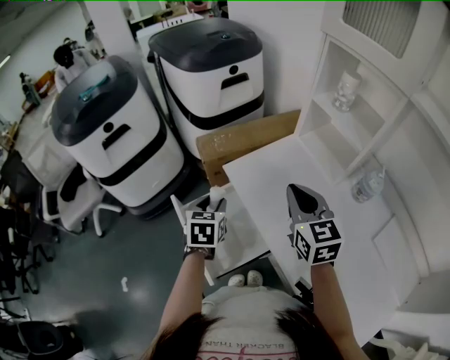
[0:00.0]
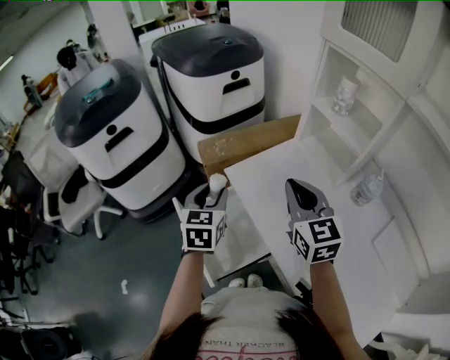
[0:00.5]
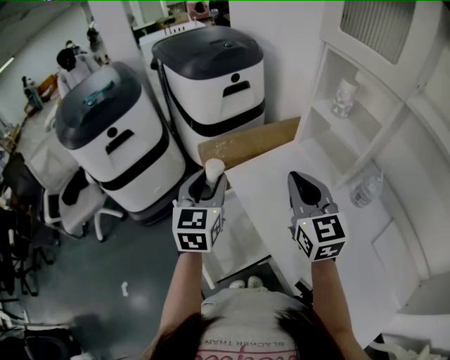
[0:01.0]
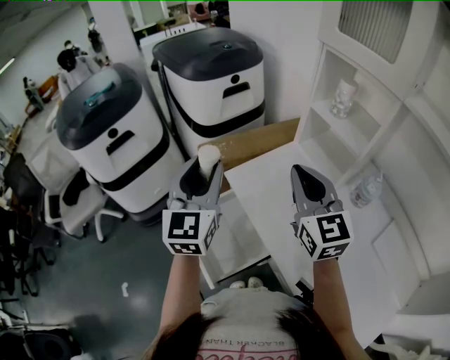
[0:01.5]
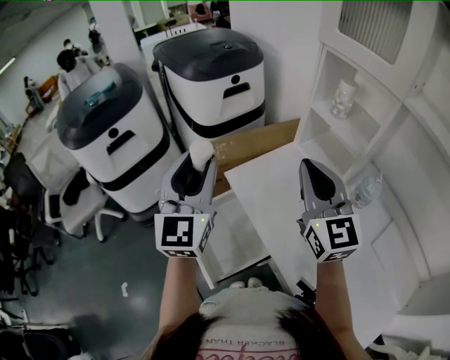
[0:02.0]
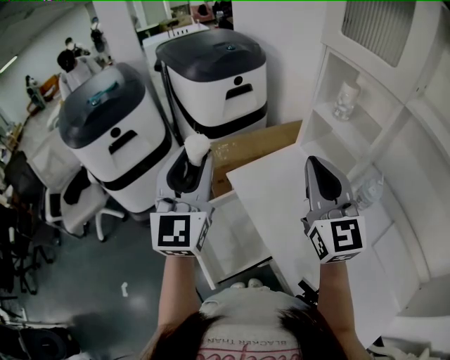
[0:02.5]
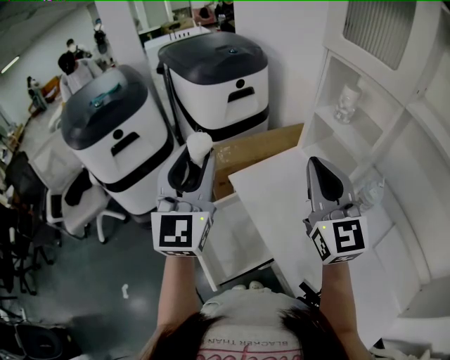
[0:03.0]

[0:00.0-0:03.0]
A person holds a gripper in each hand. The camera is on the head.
0:00.0 to 0:01.5: The left gripper heads upward, covering approximately 20 cm, and tips its fingers upward by some 40 degrees. The right gripper is displaced upward by roughly 10 cm.
0:01.5 to 0:03.0: The two grippers go roughly 5 cm upward.

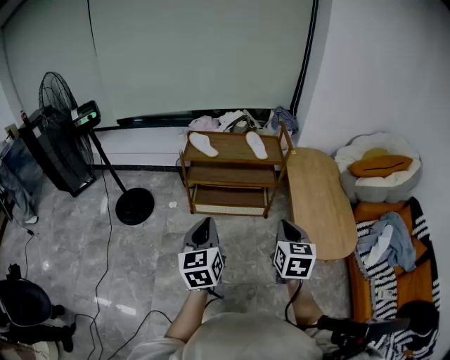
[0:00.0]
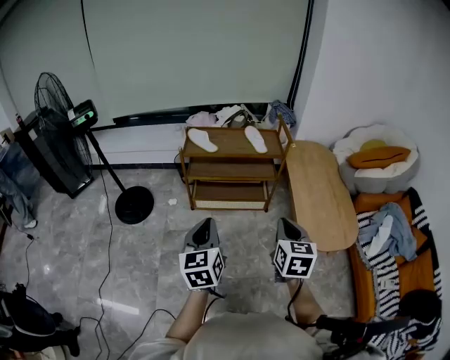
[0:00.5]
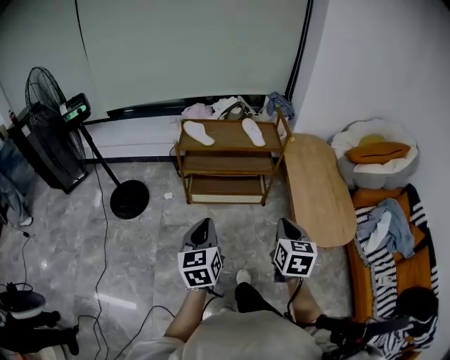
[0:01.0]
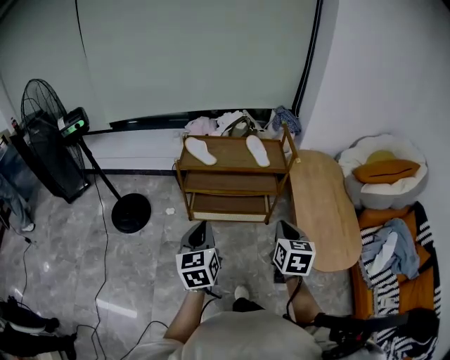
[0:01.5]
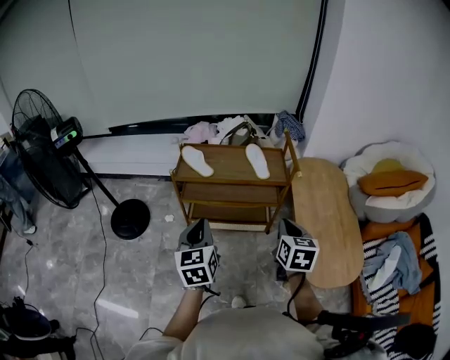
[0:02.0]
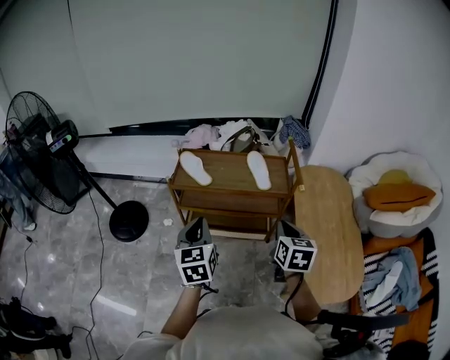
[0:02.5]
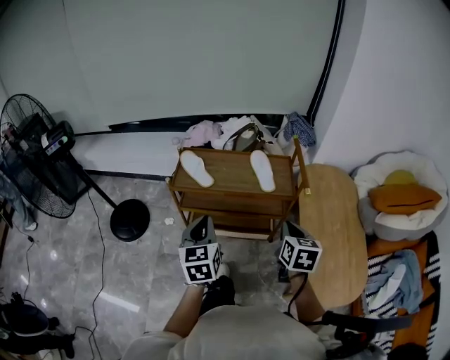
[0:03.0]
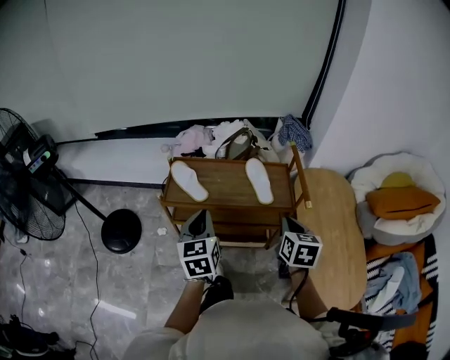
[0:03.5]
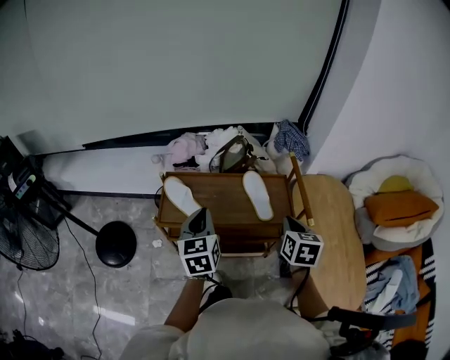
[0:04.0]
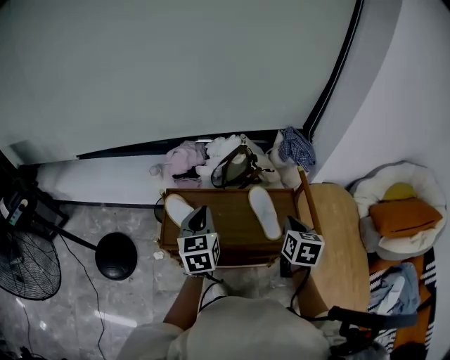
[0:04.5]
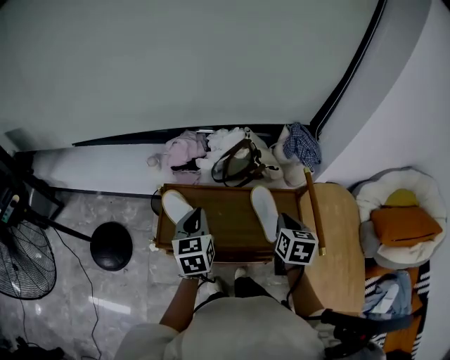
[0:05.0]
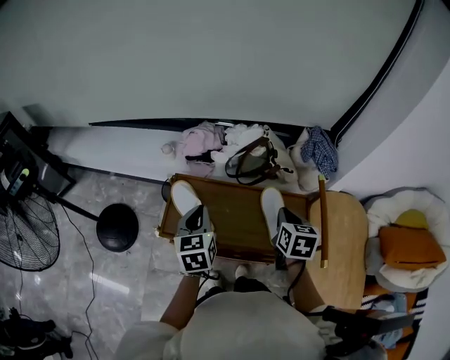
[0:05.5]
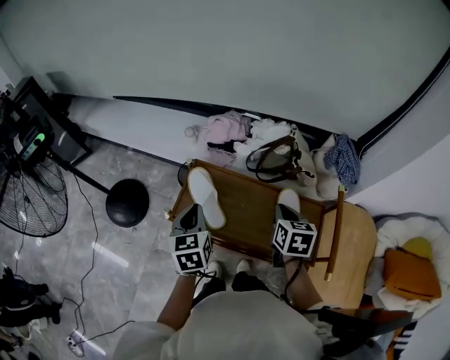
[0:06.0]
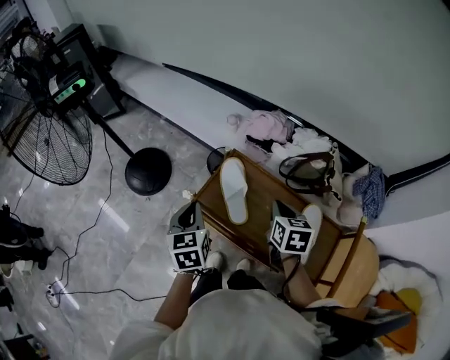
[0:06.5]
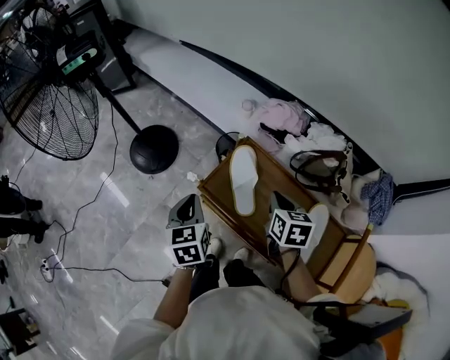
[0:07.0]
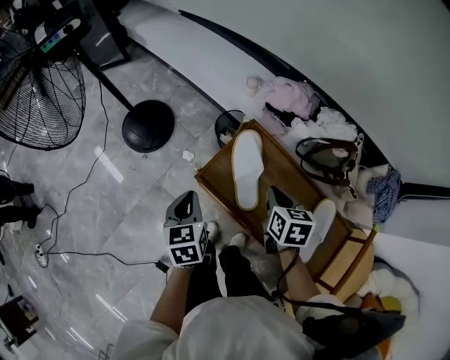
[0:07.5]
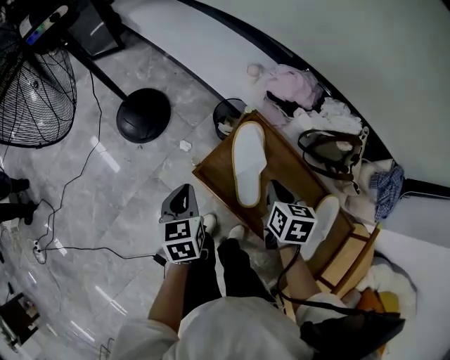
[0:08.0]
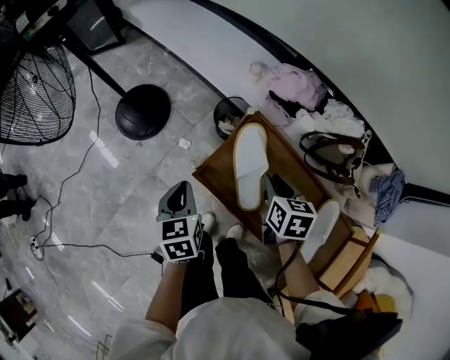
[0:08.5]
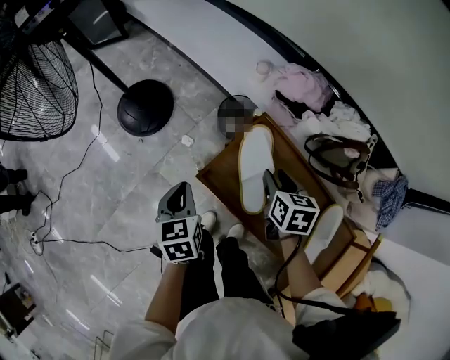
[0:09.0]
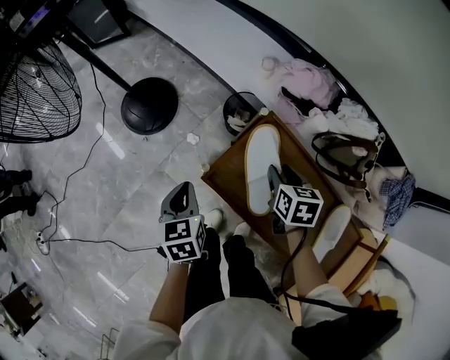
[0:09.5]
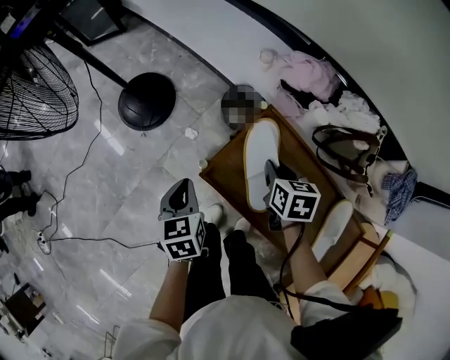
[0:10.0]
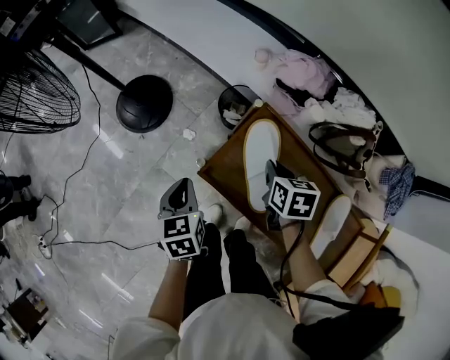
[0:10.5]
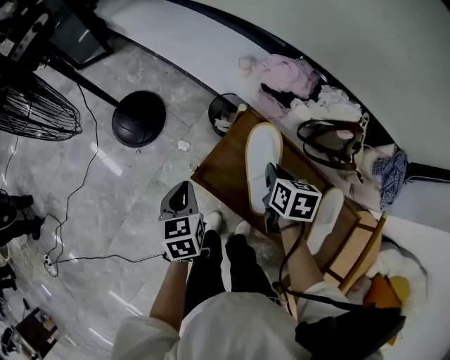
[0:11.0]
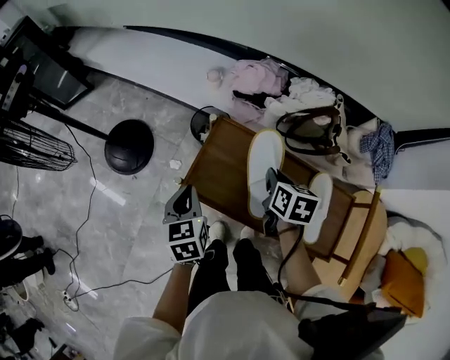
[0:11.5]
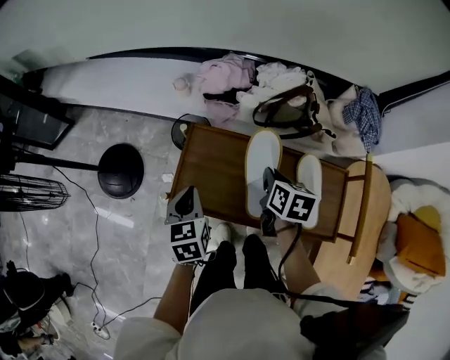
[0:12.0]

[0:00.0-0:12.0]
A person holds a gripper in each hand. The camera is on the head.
0:00.0 to 0:02.0: Both grippers travel together forward, approximately 20 cm.
0:02.0 to 0:04.0: The two grippers go some 30 cm forward.
0:04.0 to 0:06.0: The right gripper travels forward and to the left by roughly 20 cm, and rotates roughly 20 degrees; the left gripper heads to the left, forward and downward, covering approximately 15 cm, and turns by approximately 20 degrees.
0:06.0 to 0:08.0: The left gripper shifts by roughly 20 cm, and rotates roughly 30 degrees, while the right gripper moves some 20 cm, and changes its angle by some 30 degrees.
0:08.0 to 0:10.0: The right gripper shifts some 10 cm forward and downward.
0:10.0 to 0:12.0: The left gripper ends up roughly 15 cm from where it was, and turns by about 30 degrees. The right gripper changes place by some 15 cm, and rotates some 40 degrees.

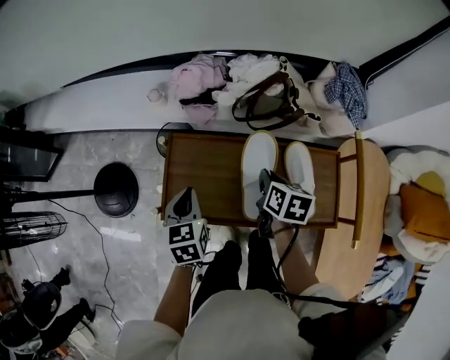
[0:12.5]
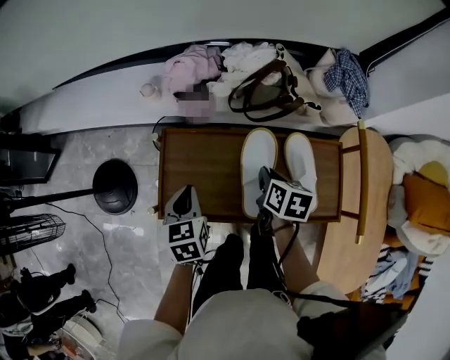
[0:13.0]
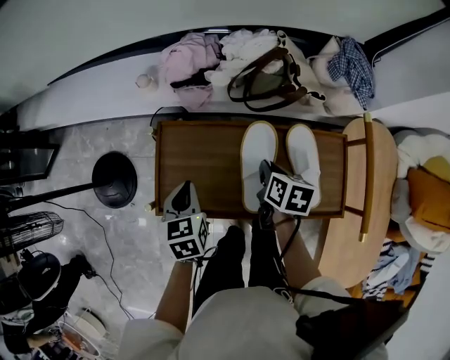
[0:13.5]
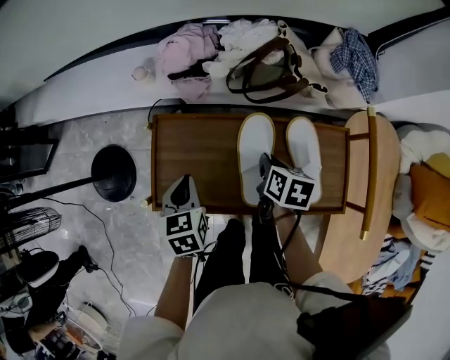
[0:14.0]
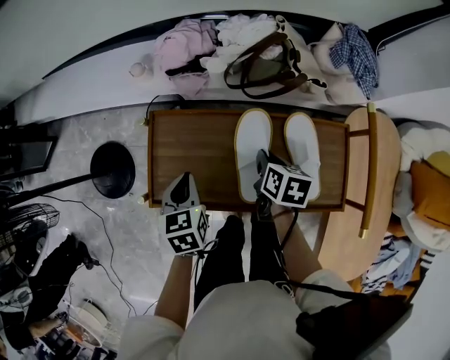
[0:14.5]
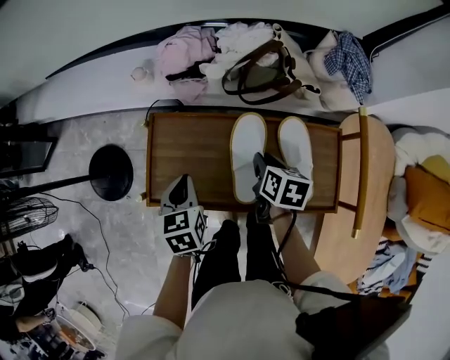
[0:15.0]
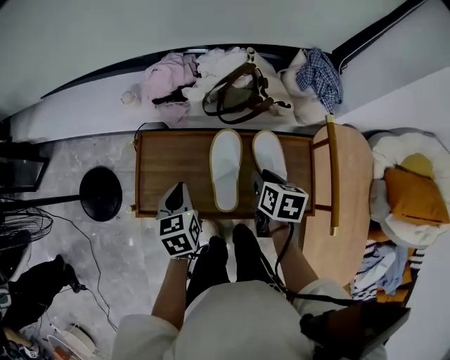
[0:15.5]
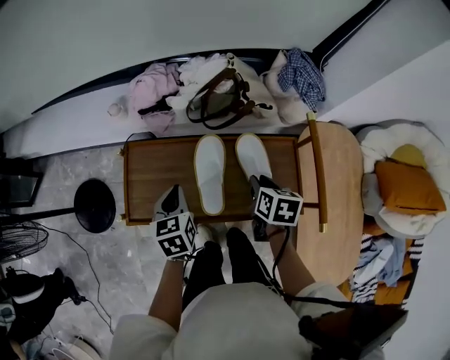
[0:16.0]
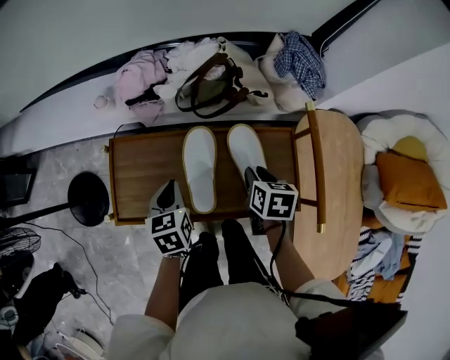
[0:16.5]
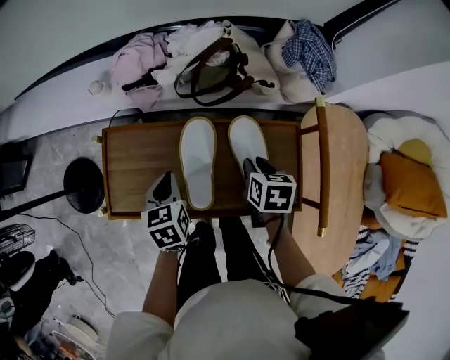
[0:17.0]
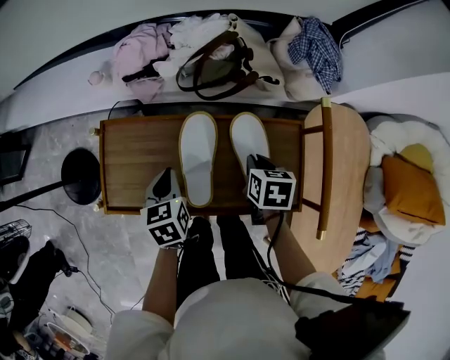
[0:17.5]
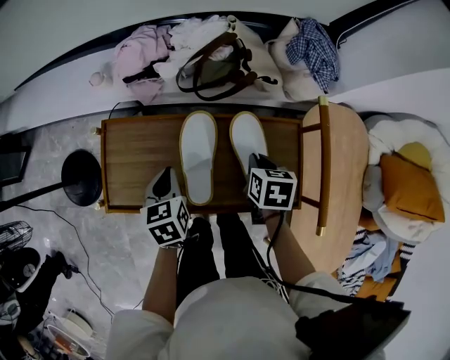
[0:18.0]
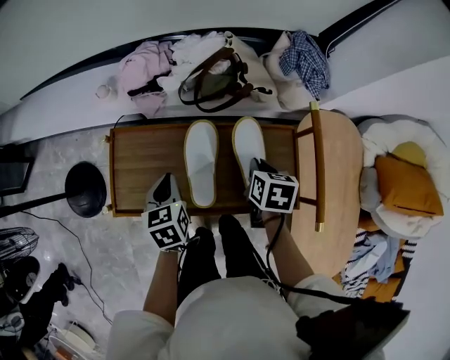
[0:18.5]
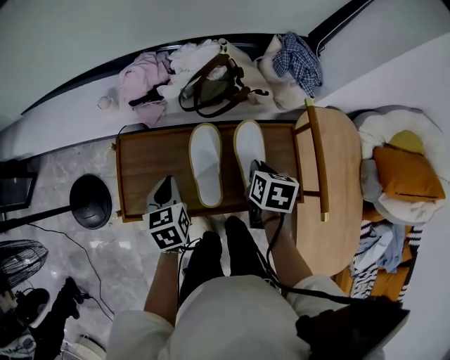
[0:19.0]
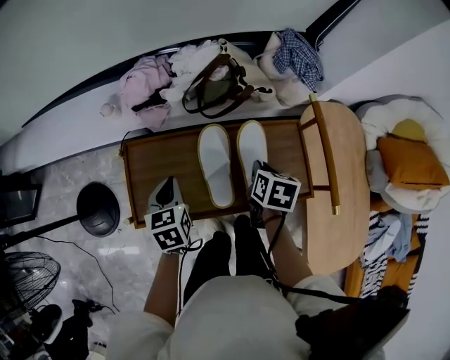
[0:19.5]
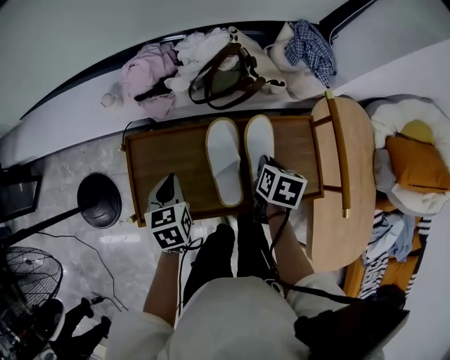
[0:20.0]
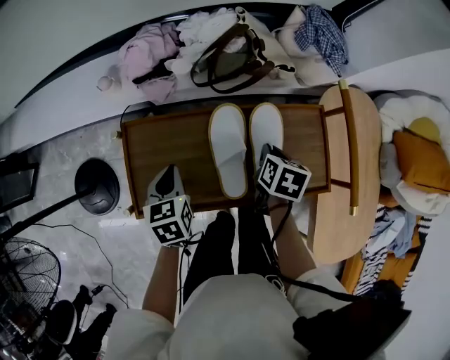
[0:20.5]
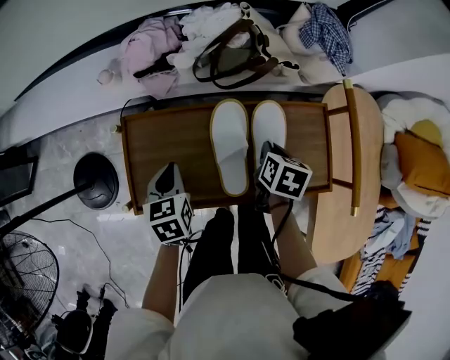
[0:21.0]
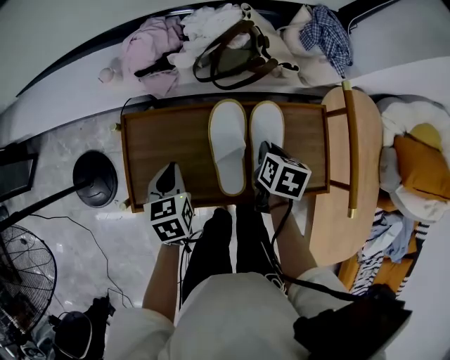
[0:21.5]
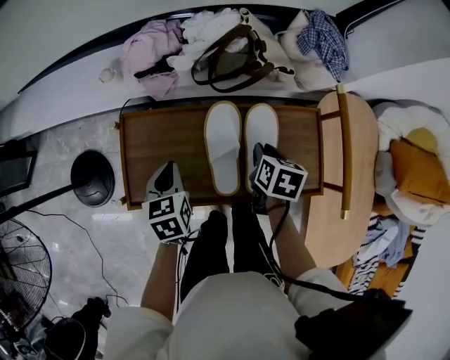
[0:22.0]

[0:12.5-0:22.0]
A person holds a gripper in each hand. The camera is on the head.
0:12.5 to 0:14.5: The right gripper shifts approximately 5 cm downward. Meanwhile the left gripper ends up some 5 cm from where it was.
0:14.5 to 0:16.5: Both grippers travel together to the right, approximately 10 cm.
0:16.5 to 0:18.0: There are only small adjustments of the grippers.
0:18.0 to 0:20.0: The left gripper travels to the left by roughly 5 cm.
0:20.0 to 0:22.0: The grippers move only a little.

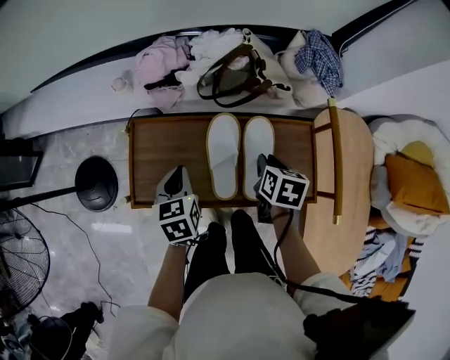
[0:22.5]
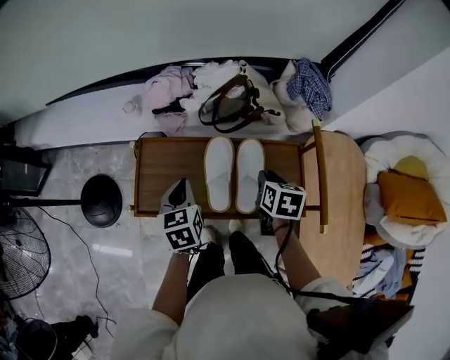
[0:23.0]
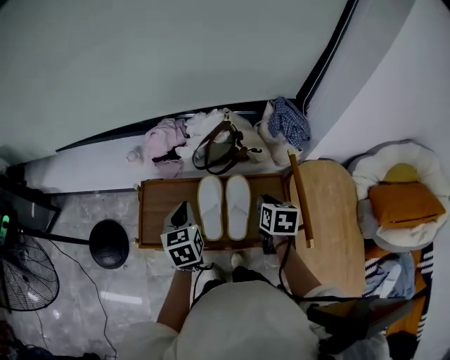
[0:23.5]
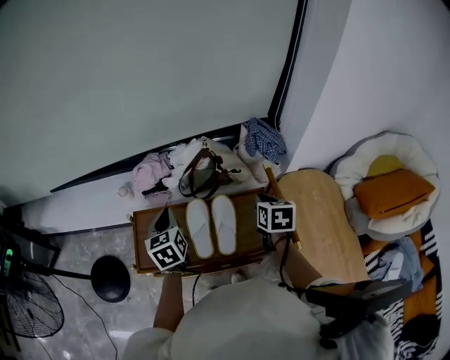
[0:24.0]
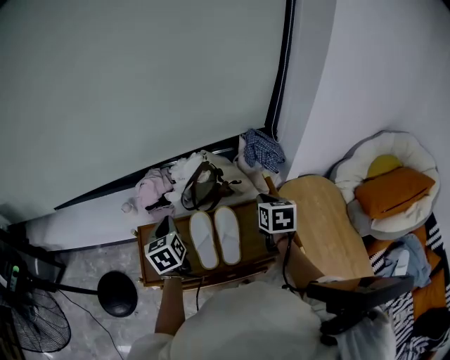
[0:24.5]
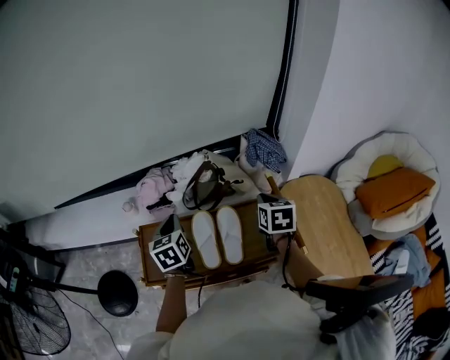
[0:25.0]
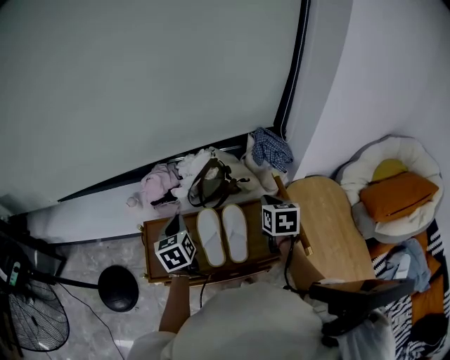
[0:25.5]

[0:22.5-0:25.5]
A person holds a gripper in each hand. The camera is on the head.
0:22.5 to 0:24.0: The left gripper shifts approximately 15 cm upward; the right gripper travels upward and to the right by some 20 cm.
0:24.0 to 0:25.5: The grippers make only small movements.
